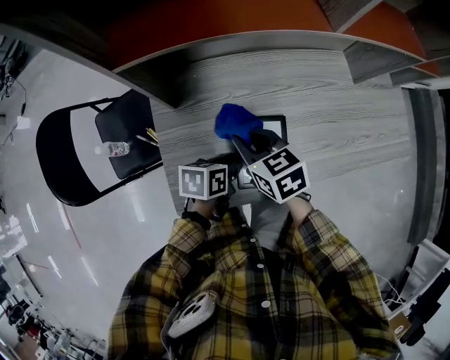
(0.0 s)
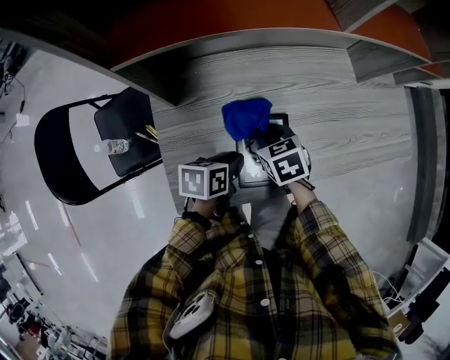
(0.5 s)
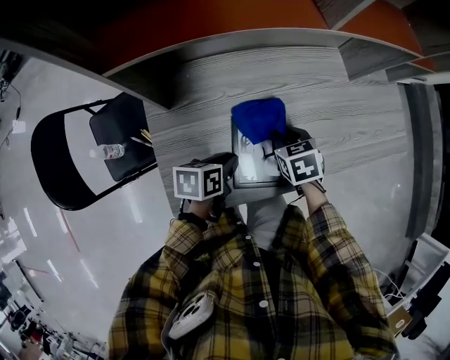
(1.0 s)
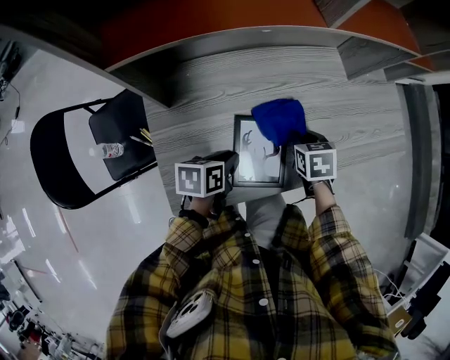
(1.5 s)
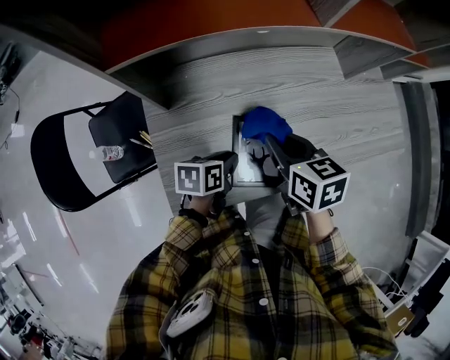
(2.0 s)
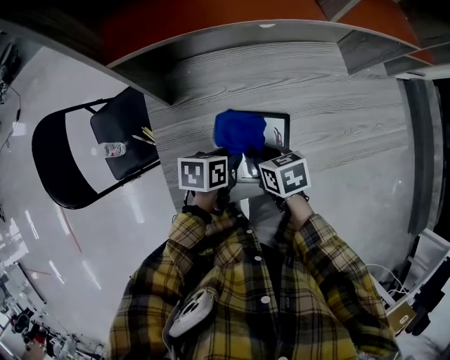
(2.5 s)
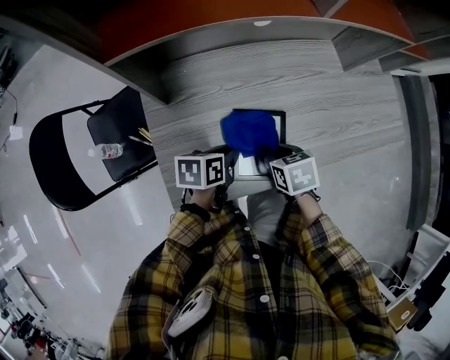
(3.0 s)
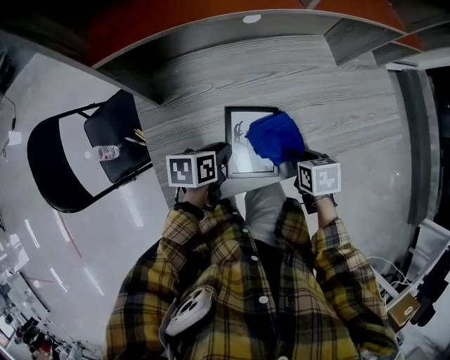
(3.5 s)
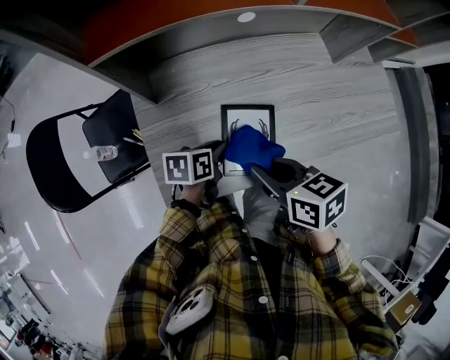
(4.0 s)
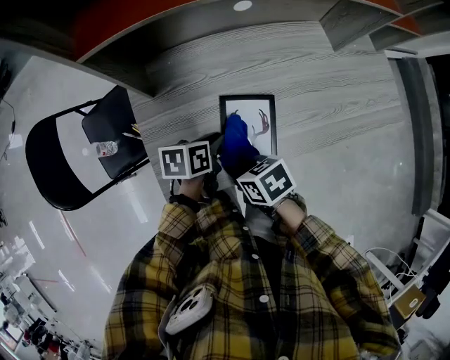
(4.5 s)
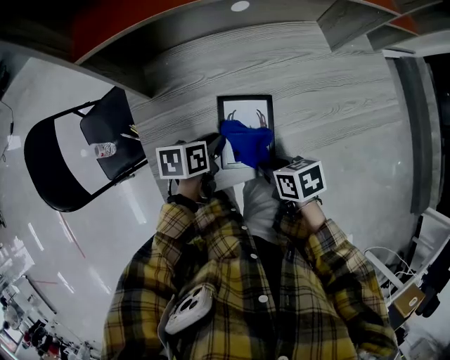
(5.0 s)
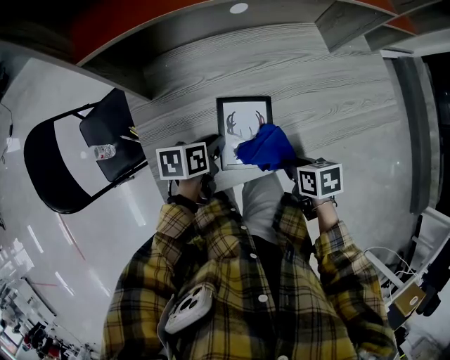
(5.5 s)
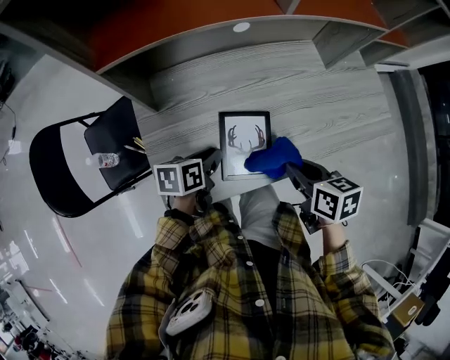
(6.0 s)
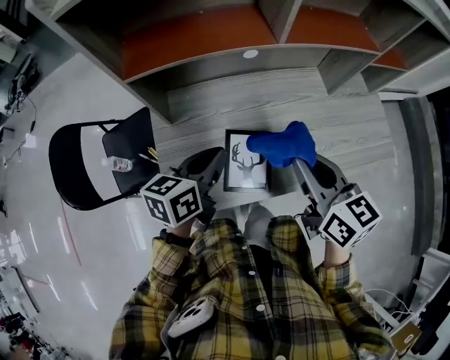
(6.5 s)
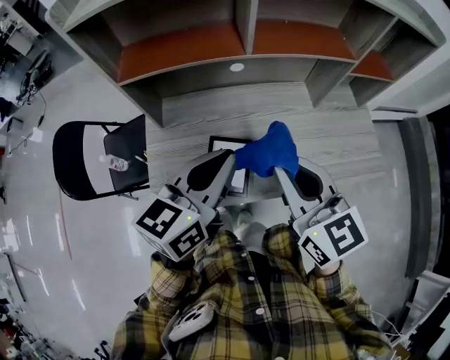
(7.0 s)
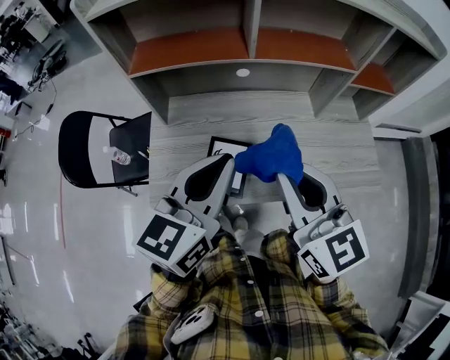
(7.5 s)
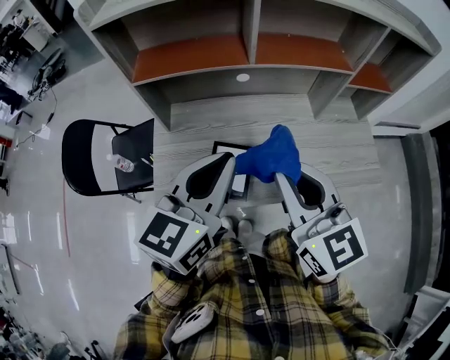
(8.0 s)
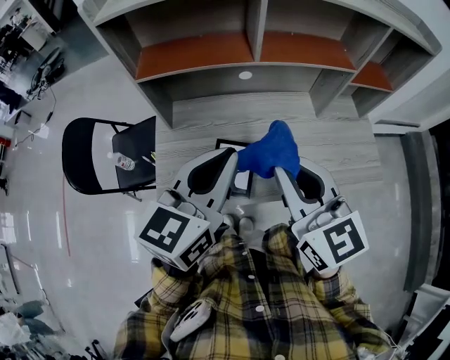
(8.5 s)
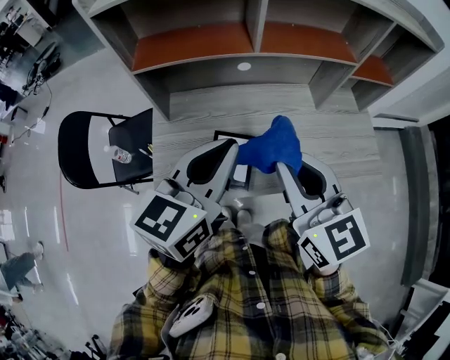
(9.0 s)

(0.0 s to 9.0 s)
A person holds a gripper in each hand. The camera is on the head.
0.0 s - 2.0 s: The right gripper travels to the right by approximately 10 cm.
2.0 s - 4.5 s: The right gripper goes up and down, roughly 15 cm each way, reversing 2 times, and rotates roughly 30 degrees.
4.5 s - 7.0 s: Both grippers move upward, about 35 cm. The left gripper points its fingers roughly 30 degrees further upward, while the right gripper angles its fingers upward, by roughly 40 degrees.
7.0 s - 9.0 s: The grippers move only a little.

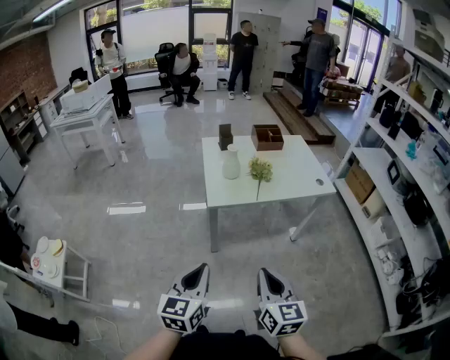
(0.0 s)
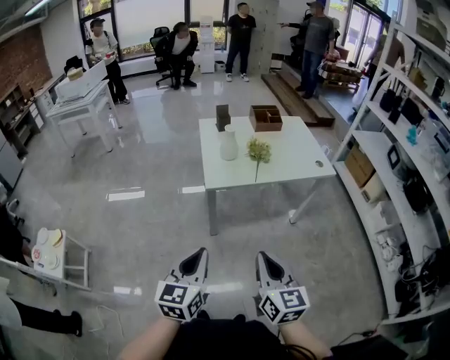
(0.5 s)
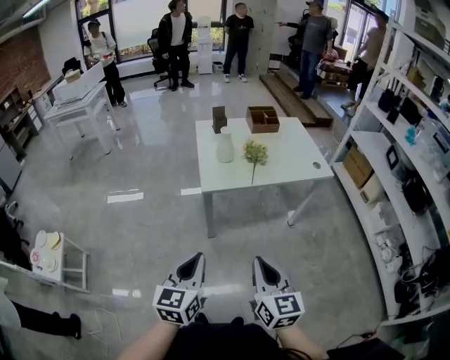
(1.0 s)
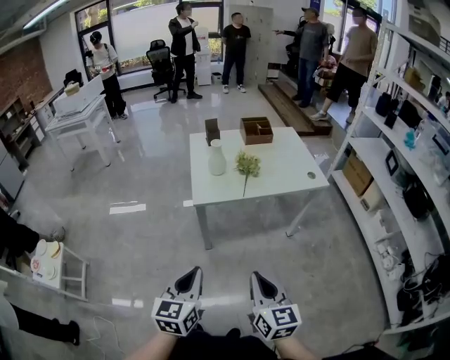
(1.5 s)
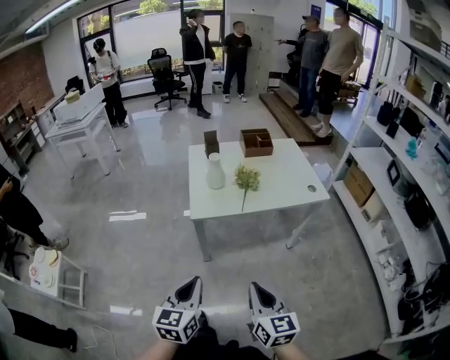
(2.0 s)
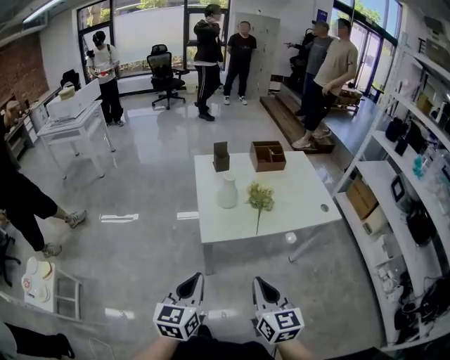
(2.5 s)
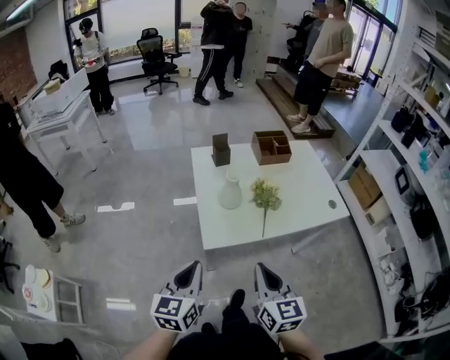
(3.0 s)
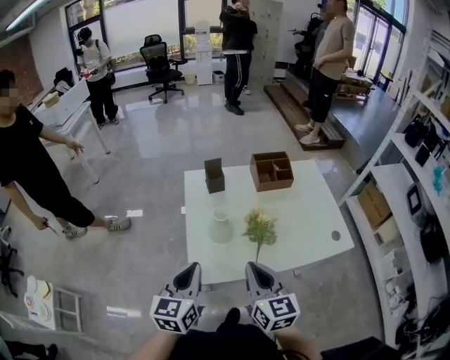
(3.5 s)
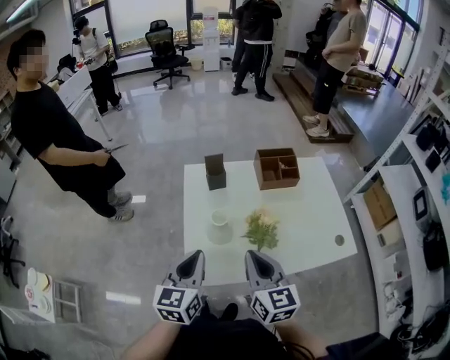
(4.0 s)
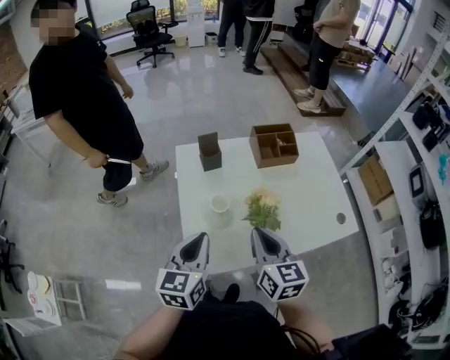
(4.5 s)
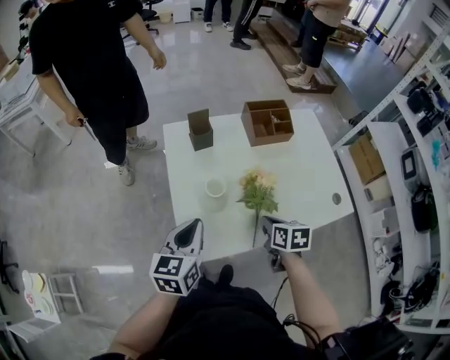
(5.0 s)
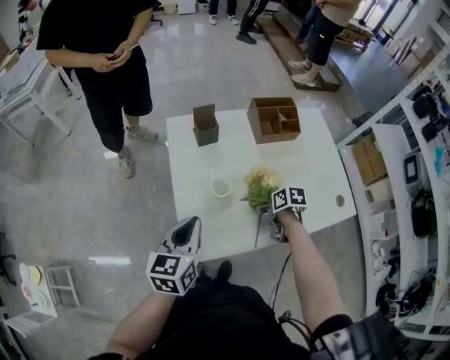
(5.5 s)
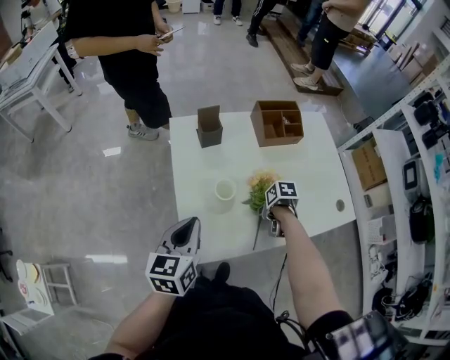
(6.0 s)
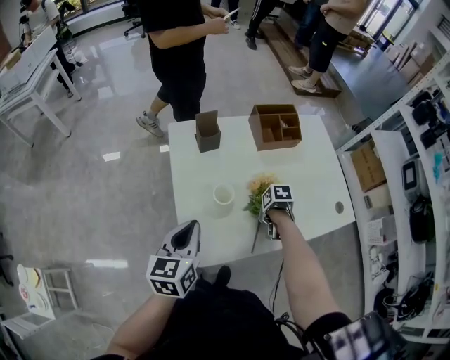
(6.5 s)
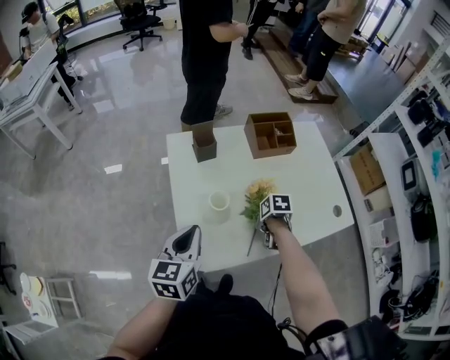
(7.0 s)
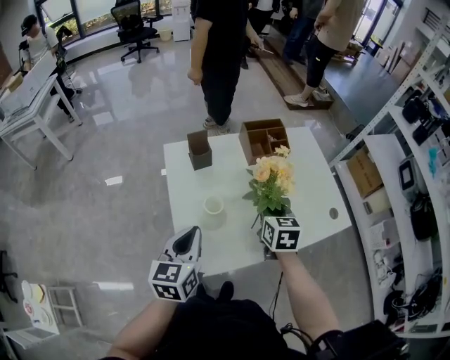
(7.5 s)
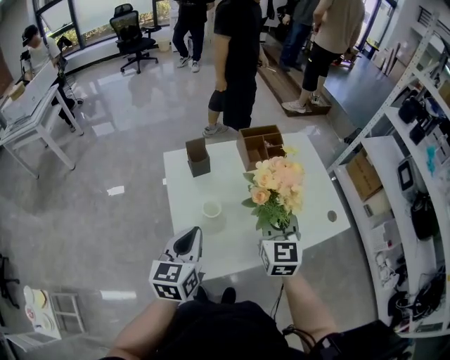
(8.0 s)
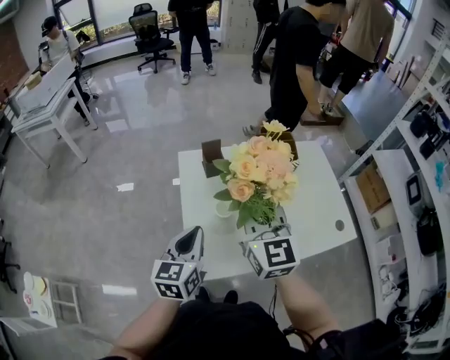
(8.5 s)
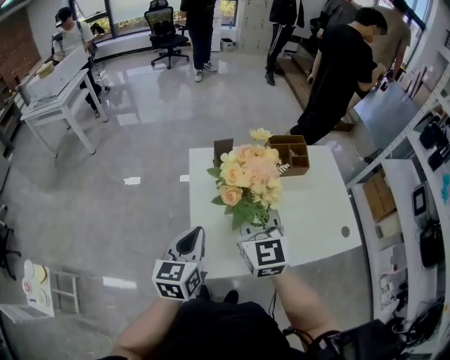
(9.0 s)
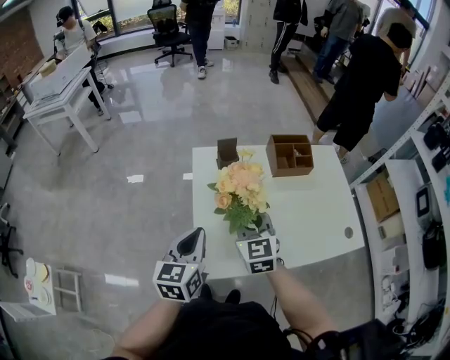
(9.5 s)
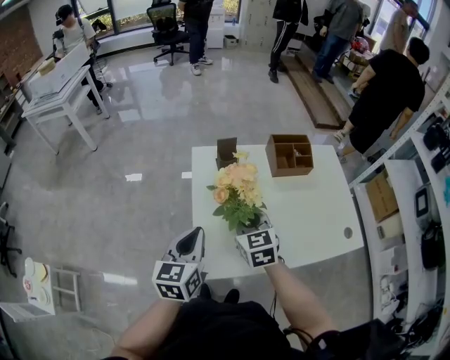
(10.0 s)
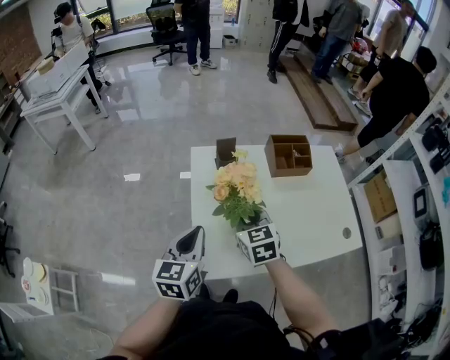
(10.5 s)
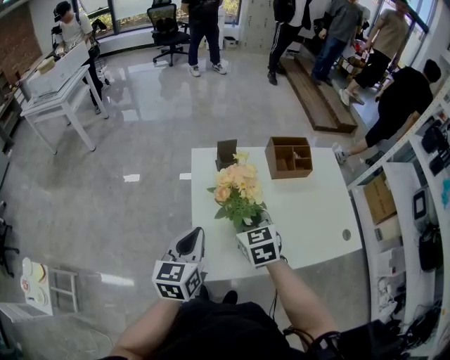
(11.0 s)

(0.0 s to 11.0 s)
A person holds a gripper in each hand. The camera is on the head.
0.0 s - 2.0 s: The two grippers go some 5 cm to the right.
2.0 s - 3.5 s: Both grippers travel together forward, roughly 40 cm.
3.5 s - 5.5 s: The left gripper shifts about 15 cm forward and downward, while the right gripper goes roughly 30 cm downward and forward, points its fingers roughly 50 degrees further downward, and opens its fingers.
5.5 s - 7.5 s: The right gripper is displaced upward by roughly 15 cm, swivels about 50 degrees, and closes its fingers.
7.5 s - 9.0 s: The right gripper heads to the left and upward, covering about 20 cm, and changes its angle by roughly 40 degrees.
9.0 s - 11.0 s: The right gripper goes roughly 15 cm downward, and swivels roughly 30 degrees.

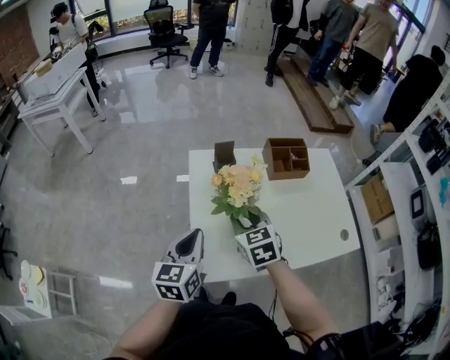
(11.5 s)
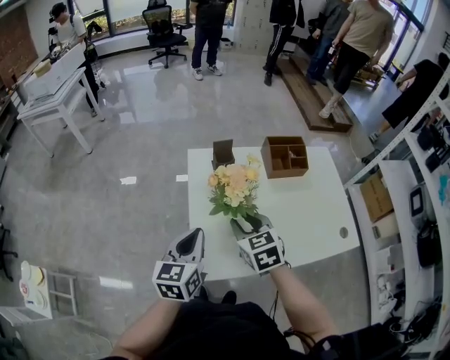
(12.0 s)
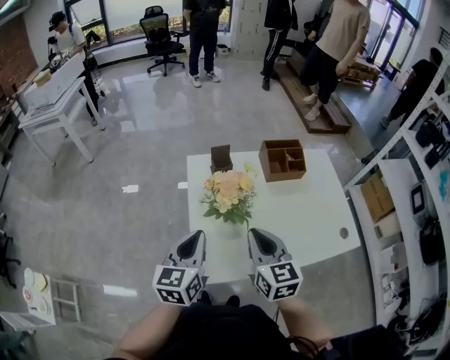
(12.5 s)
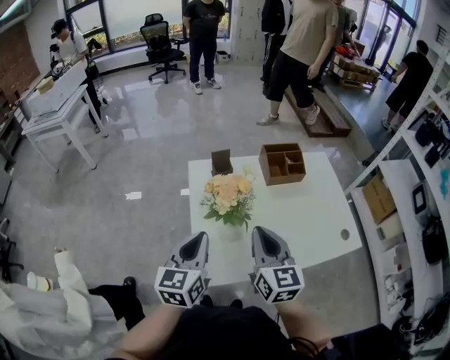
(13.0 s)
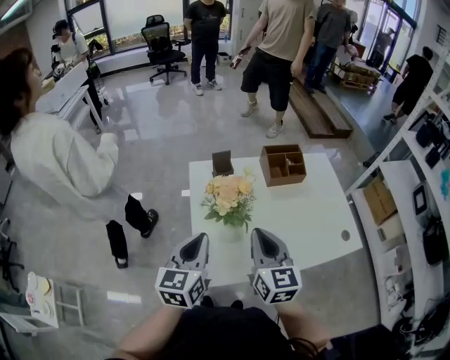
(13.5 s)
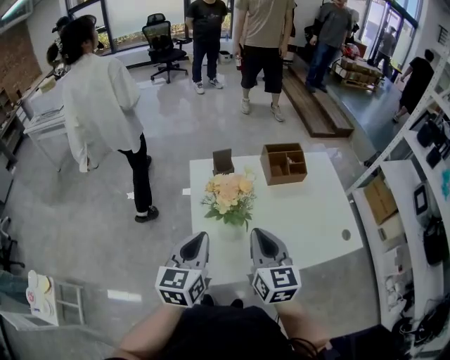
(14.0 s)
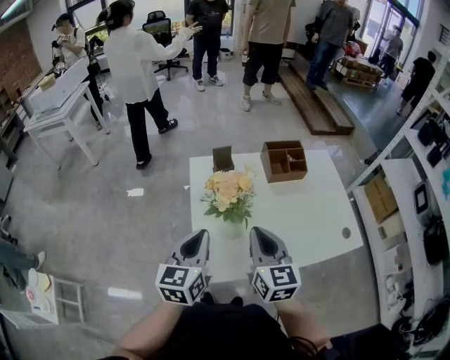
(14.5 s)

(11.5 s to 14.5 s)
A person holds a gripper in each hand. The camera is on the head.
11.5 s - 13.0 s: The right gripper heads upward, backward and to the right, covering some 10 cm, swivels roughly 30 degrees, and closes its fingers.
13.0 s - 14.5 s: The grippers make only small movements.

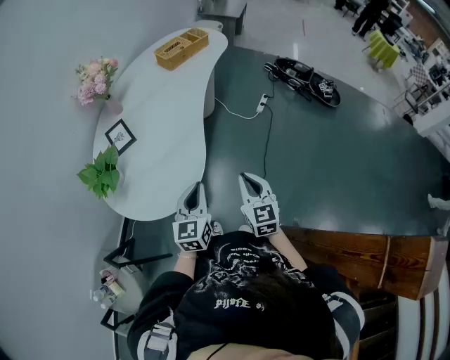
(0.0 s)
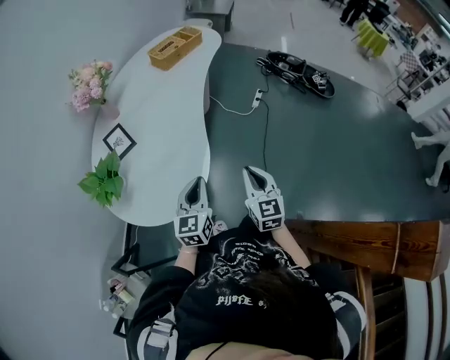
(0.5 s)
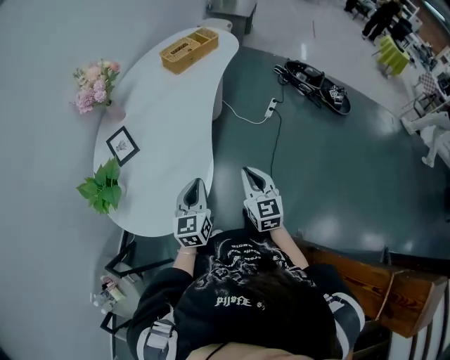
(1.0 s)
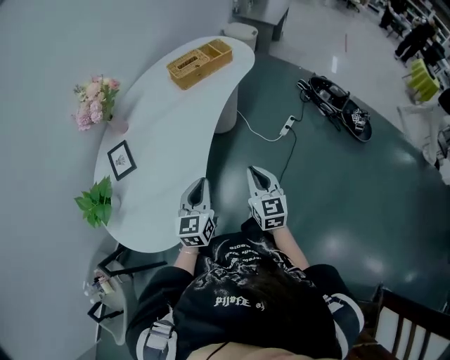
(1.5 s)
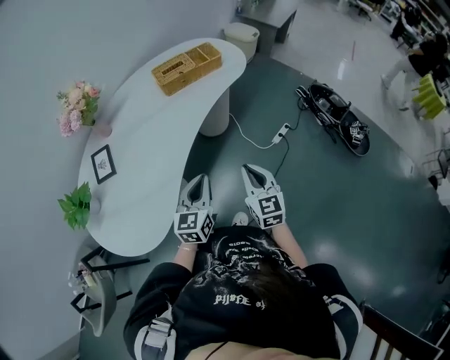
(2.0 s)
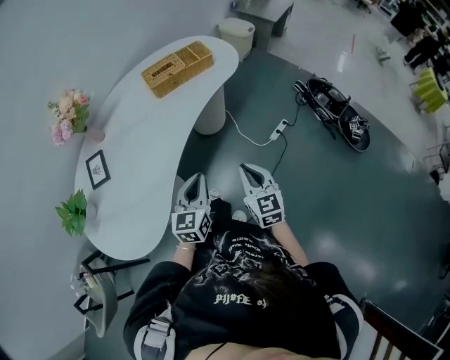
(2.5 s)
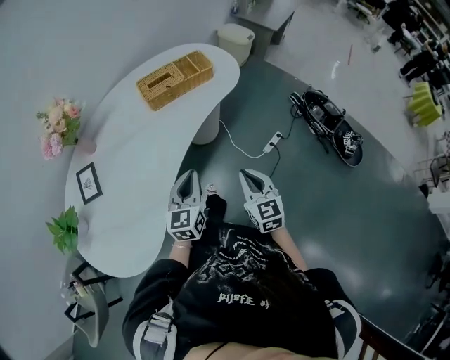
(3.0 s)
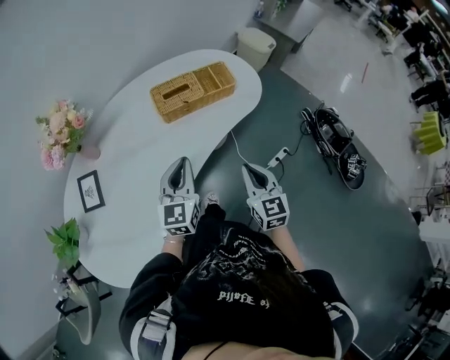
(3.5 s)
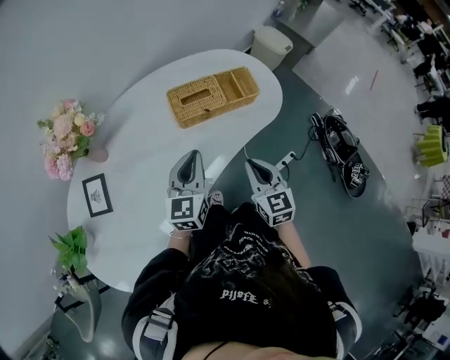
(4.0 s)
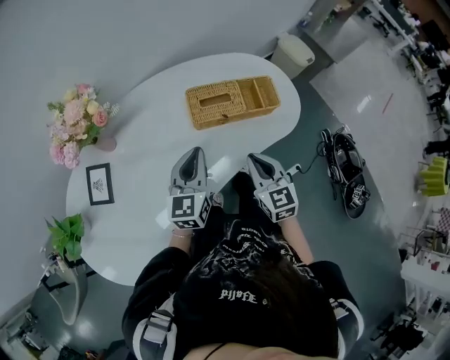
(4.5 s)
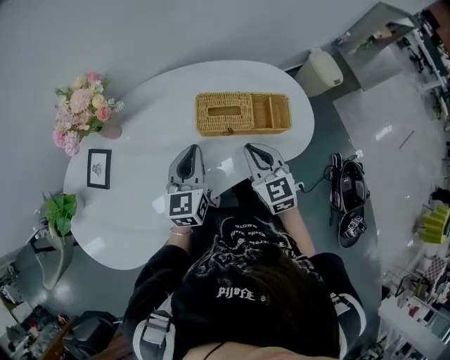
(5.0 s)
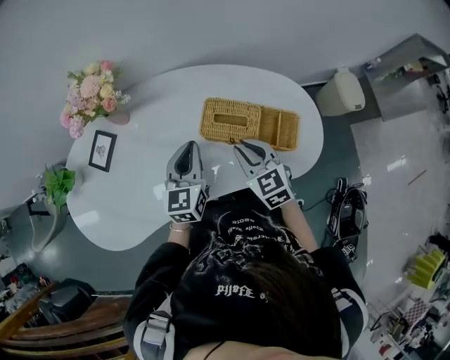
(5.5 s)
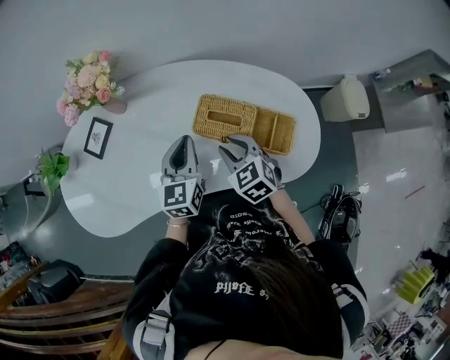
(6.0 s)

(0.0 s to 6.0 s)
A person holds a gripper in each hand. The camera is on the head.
0.0 s - 2.0 s: Both grippers travel together forward and to the right, some 35 cm.
2.0 s - 4.0 s: The two grippers go roughly 30 cm forward.
4.0 s - 6.0 s: The left gripper ends up roughly 10 cm from where it was, and rotates roughly 40 degrees, while the right gripper shifts by roughly 20 cm, changes its angle by some 60 degrees, and opens its fingers.
